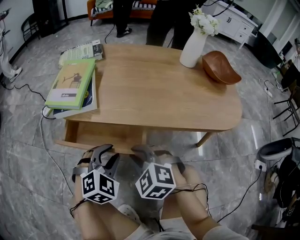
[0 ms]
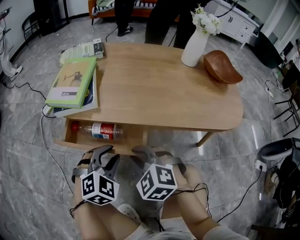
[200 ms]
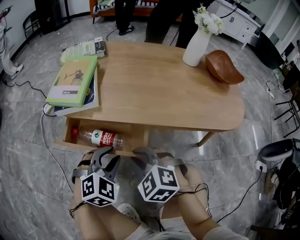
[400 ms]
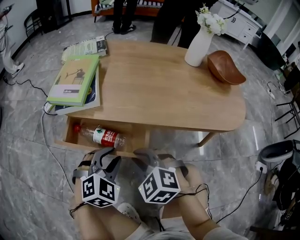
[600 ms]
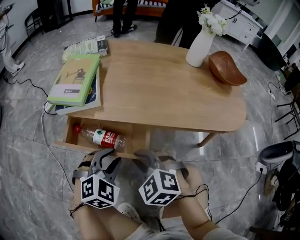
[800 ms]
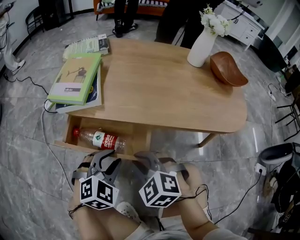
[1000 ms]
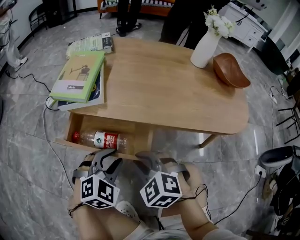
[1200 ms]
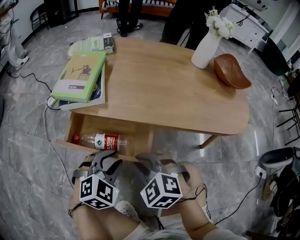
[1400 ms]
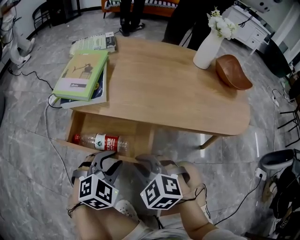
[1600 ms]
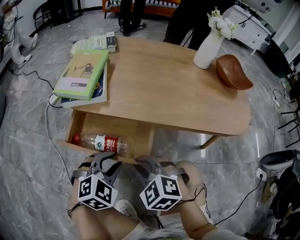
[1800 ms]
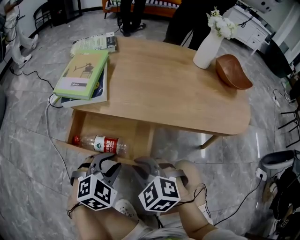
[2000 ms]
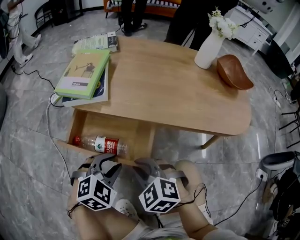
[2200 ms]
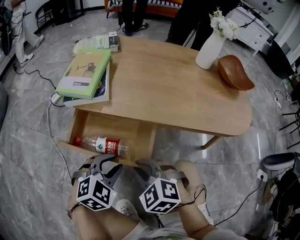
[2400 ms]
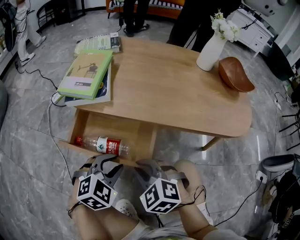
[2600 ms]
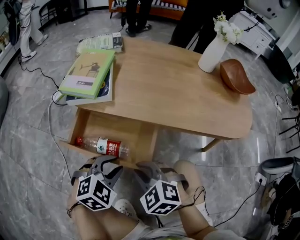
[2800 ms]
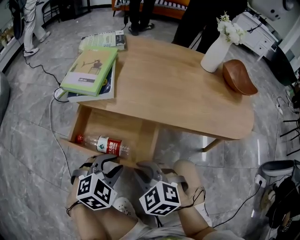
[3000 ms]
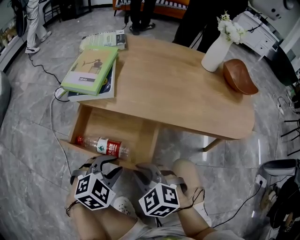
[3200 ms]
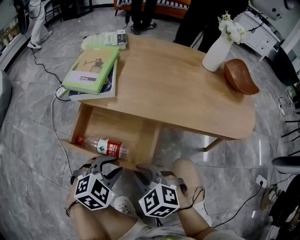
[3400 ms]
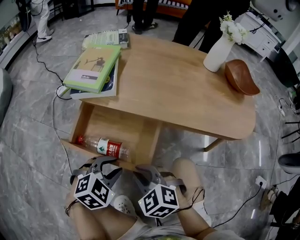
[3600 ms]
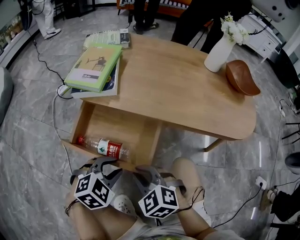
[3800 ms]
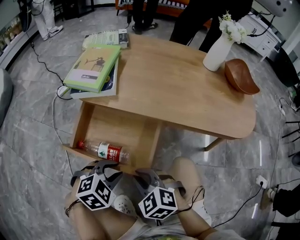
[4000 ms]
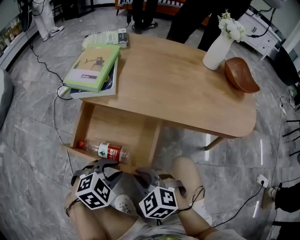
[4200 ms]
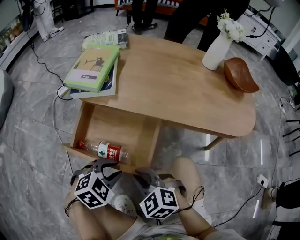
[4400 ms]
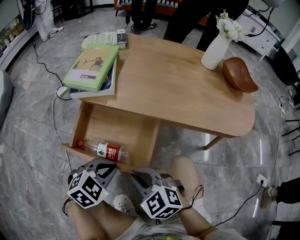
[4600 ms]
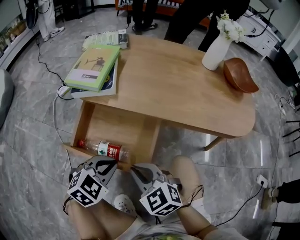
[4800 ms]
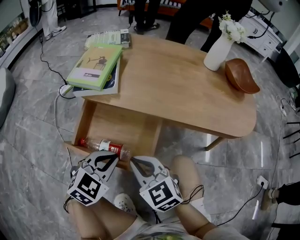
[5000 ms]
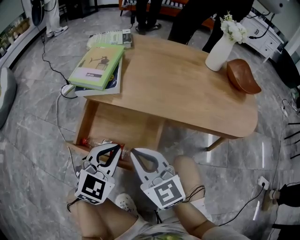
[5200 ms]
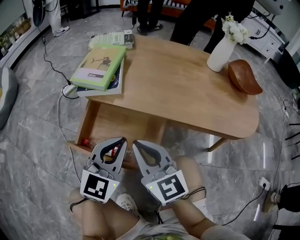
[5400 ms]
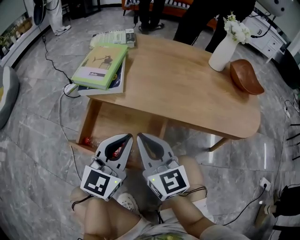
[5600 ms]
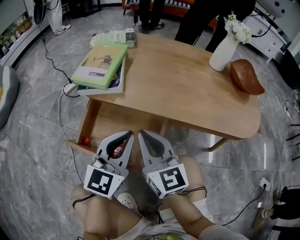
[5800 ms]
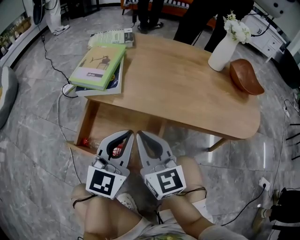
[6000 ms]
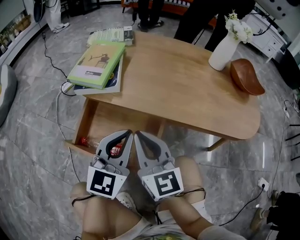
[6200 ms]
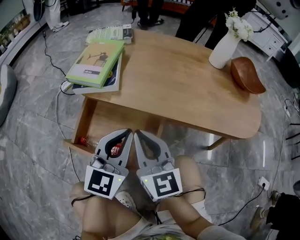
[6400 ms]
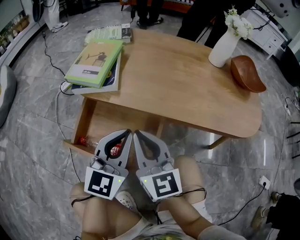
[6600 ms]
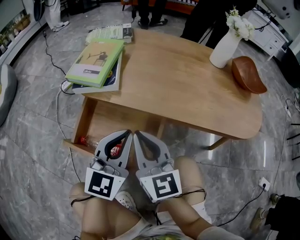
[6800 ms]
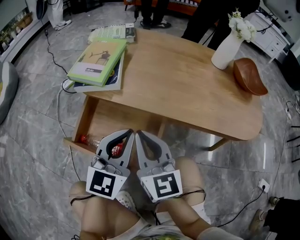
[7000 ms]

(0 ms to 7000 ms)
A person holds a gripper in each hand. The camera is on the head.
0 ms - 1400 ms: The grippers stay close to where they were, moving slightly.
1400 ms - 2800 ms: The grippers move only a little.
2800 ms - 4200 ms: The grippers stay close to where they were, moving slightly.
4200 ms - 5600 ms: Both grippers move upward and forward, about 15 cm. The right gripper angles its fingers upward, by approximately 50 degrees; the left gripper tips its fingers upward by about 50 degrees, and closes up.
5600 ms - 7000 ms: There are only small adjustments of the grippers.

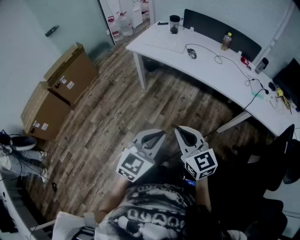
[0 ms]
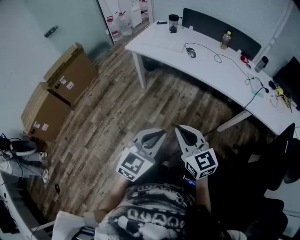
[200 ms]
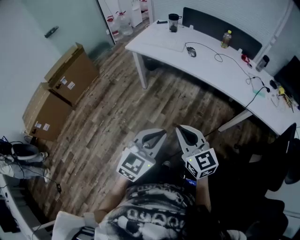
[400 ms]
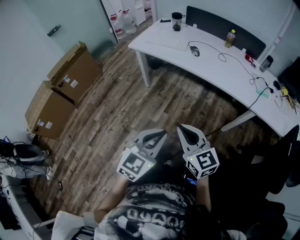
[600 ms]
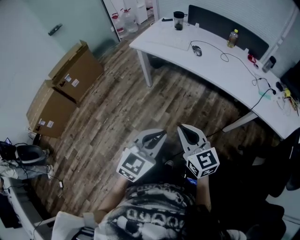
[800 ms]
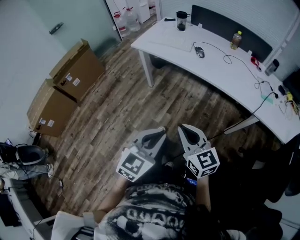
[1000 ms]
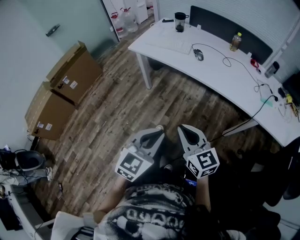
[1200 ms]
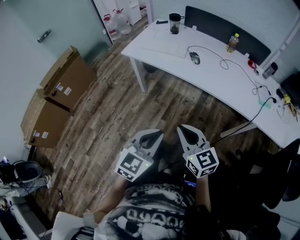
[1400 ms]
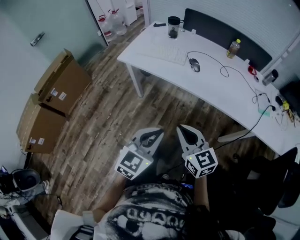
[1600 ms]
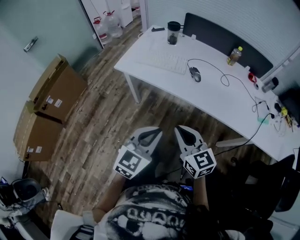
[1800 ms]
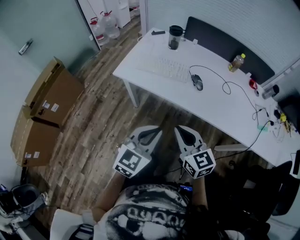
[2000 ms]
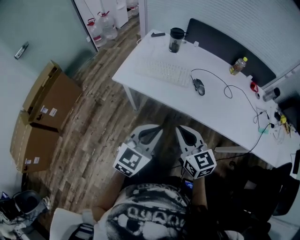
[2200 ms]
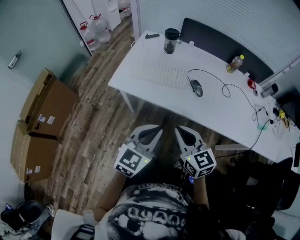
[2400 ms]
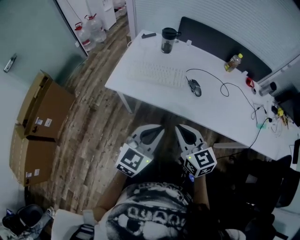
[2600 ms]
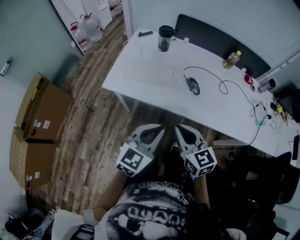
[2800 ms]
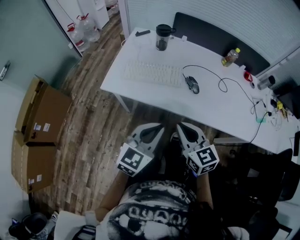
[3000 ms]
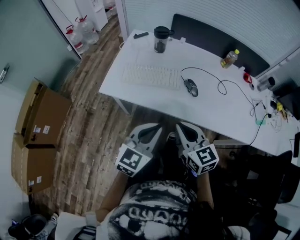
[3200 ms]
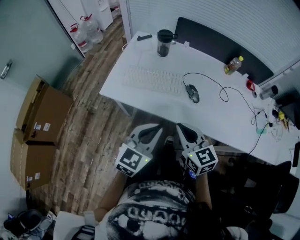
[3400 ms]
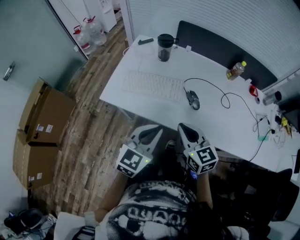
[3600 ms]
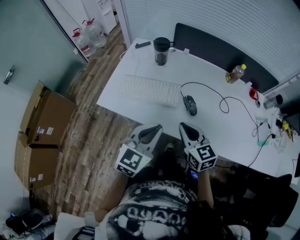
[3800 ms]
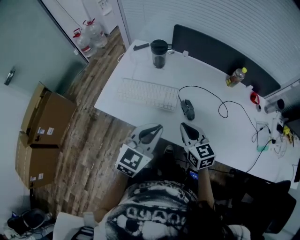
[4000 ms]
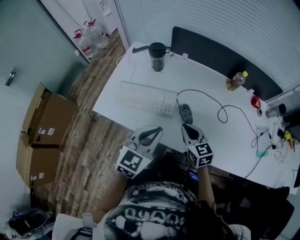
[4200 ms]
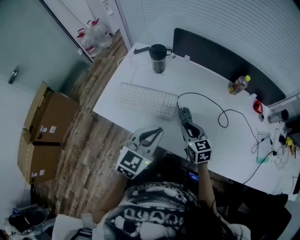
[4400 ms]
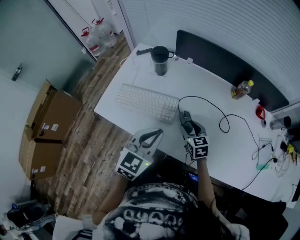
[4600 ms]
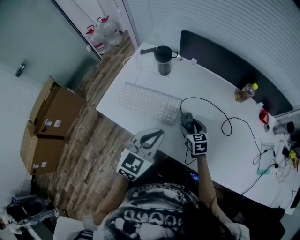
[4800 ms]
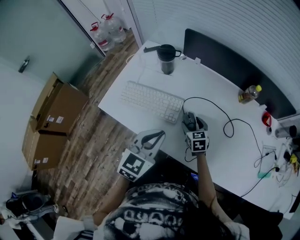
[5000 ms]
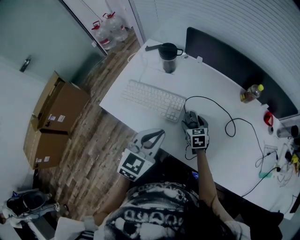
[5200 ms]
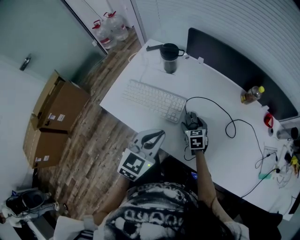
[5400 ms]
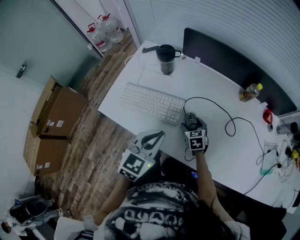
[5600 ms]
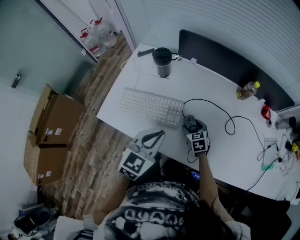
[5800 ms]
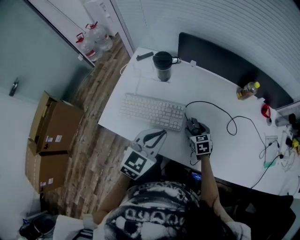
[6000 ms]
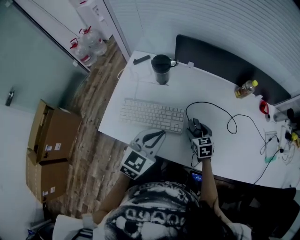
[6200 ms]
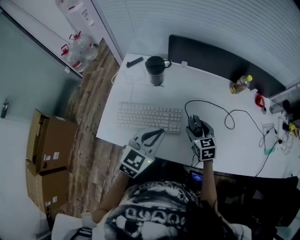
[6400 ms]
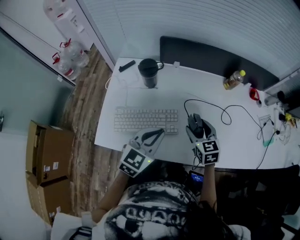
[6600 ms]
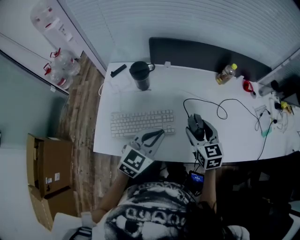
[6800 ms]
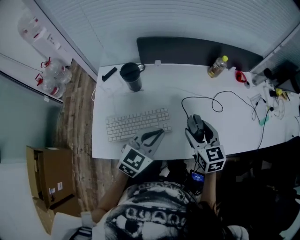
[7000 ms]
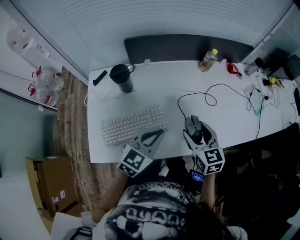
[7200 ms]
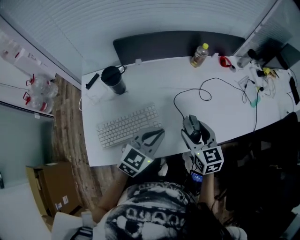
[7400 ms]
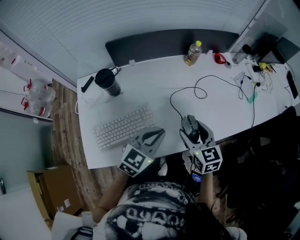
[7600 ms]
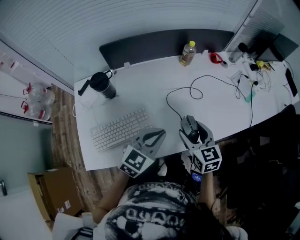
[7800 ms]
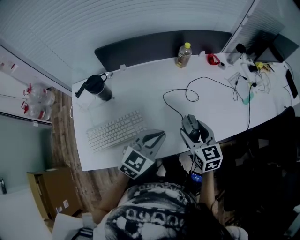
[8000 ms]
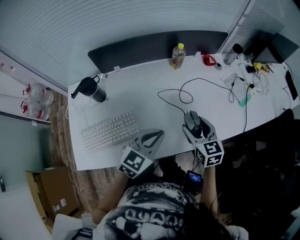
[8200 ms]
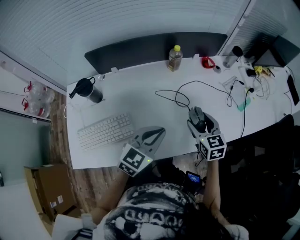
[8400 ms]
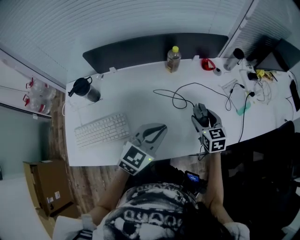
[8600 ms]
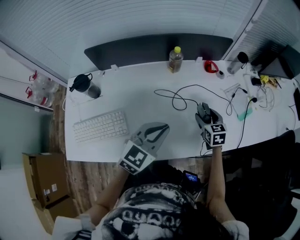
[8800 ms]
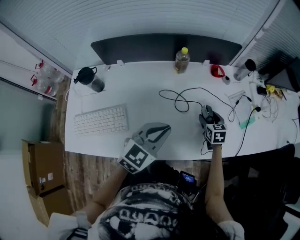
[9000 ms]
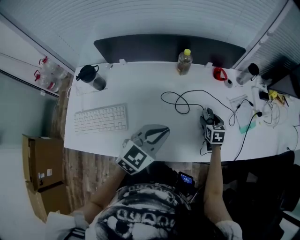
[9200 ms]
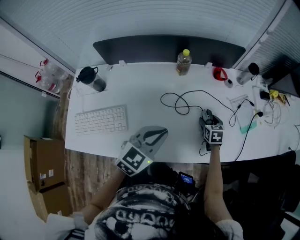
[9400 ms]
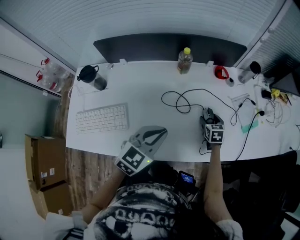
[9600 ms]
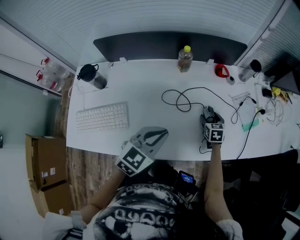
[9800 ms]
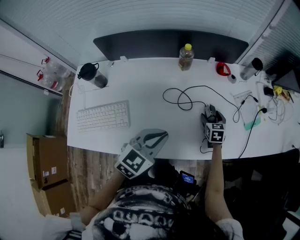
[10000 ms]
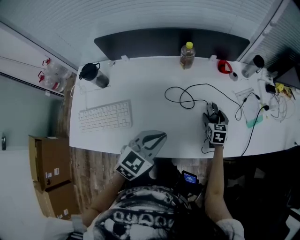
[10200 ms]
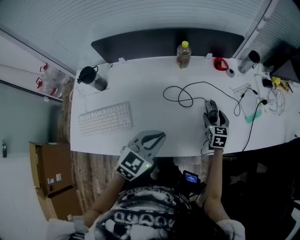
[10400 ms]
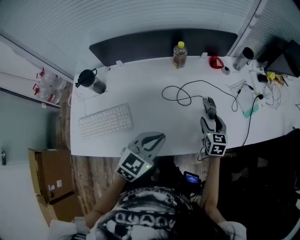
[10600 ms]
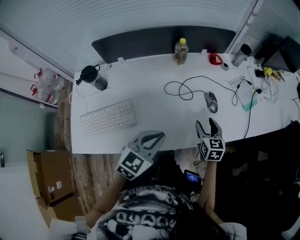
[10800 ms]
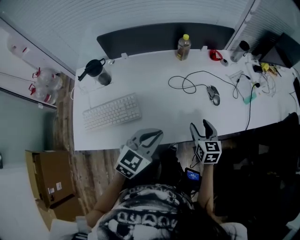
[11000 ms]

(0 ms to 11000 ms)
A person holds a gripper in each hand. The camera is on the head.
0 ms - 1600 ms: Both grippers travel together forward, roughly 20 cm.
1600 ms - 3200 ms: Both grippers move forward, approximately 25 cm.
3200 ms - 4800 ms: The left gripper heads forward and to the right, covering about 20 cm, while the right gripper moves forward, downward and to the right, about 35 cm, and opens up.
4800 ms - 6200 ms: The left gripper moves forward and to the left, about 10 cm.
6200 ms - 7800 ms: The right gripper shifts approximately 15 cm upward, and rotates some 30 degrees, while the left gripper changes place by approximately 10 cm, and changes its angle by approximately 40 degrees.
7800 ms - 9400 ms: The left gripper moves to the right and forward, about 20 cm. The right gripper travels to the right, forward and downward by roughly 40 cm, and swivels about 20 degrees.
9400 ms - 11000 ms: The left gripper goes approximately 15 cm backward and to the left; the right gripper heads backward and upward, covering approximately 25 cm.

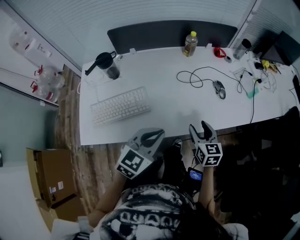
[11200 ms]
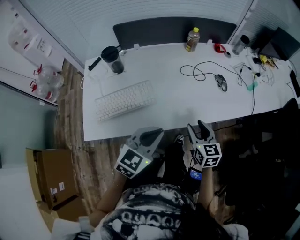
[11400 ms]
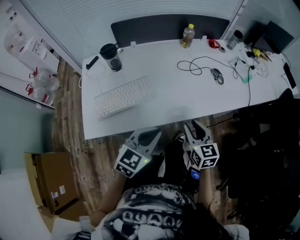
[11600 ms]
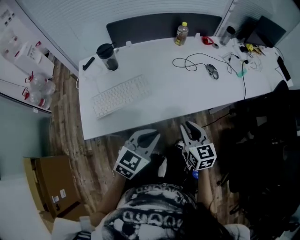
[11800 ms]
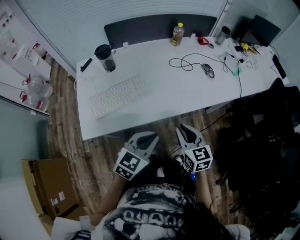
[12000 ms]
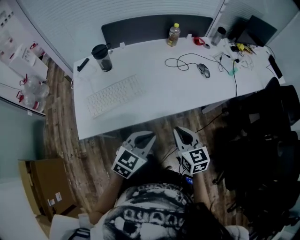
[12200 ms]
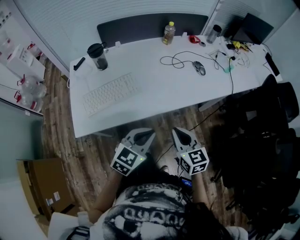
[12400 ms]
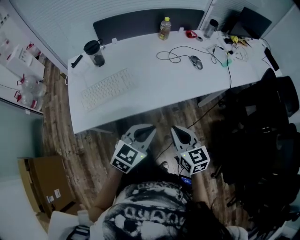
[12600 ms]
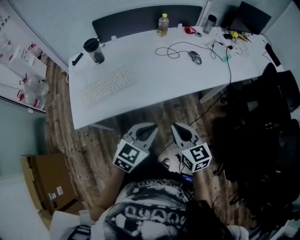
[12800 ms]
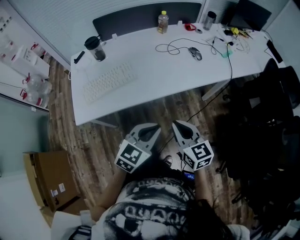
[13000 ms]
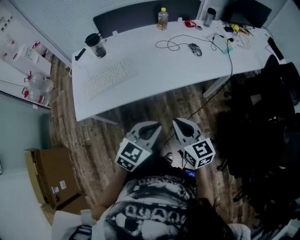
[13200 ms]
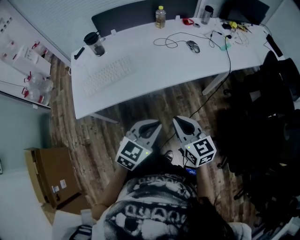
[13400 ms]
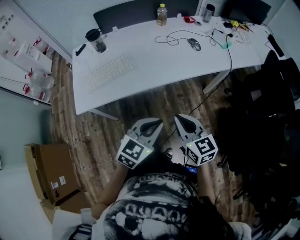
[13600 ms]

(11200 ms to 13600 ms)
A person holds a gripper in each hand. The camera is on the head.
11200 ms - 12400 ms: The two grippers go roughly 20 cm backward. The right gripper closes its fingers.
12400 ms - 13600 ms: The left gripper shifts roughly 15 cm to the right and backward; the right gripper shifts some 10 cm backward and to the right.

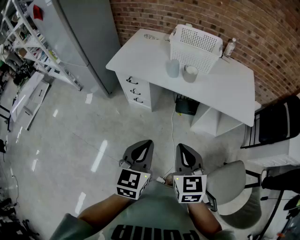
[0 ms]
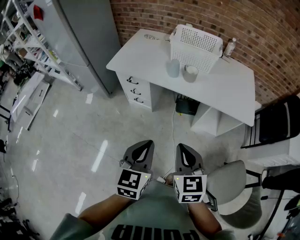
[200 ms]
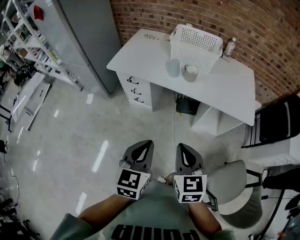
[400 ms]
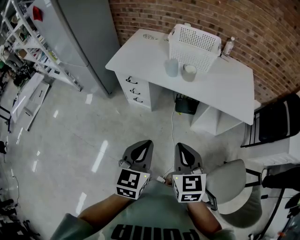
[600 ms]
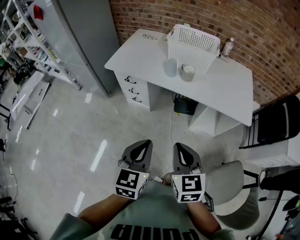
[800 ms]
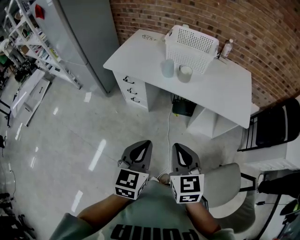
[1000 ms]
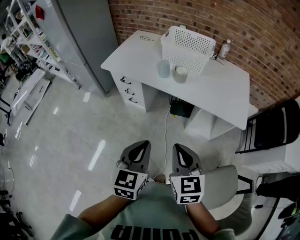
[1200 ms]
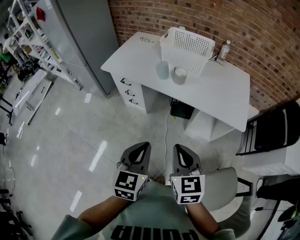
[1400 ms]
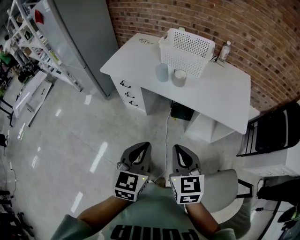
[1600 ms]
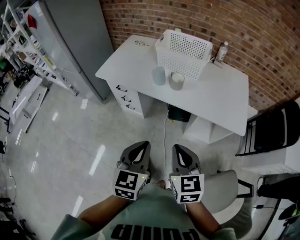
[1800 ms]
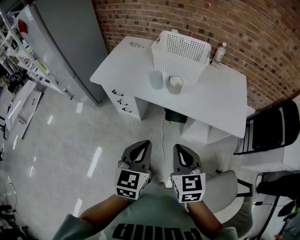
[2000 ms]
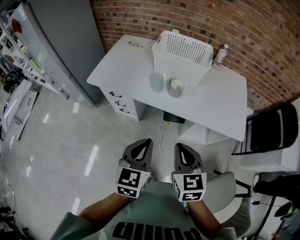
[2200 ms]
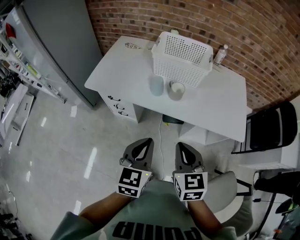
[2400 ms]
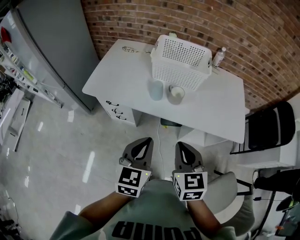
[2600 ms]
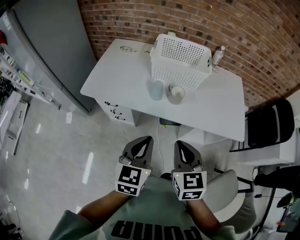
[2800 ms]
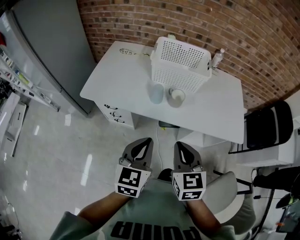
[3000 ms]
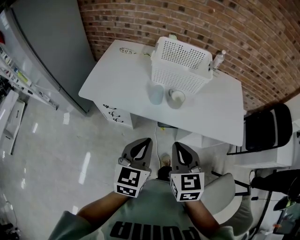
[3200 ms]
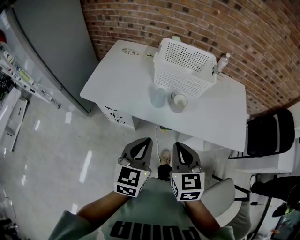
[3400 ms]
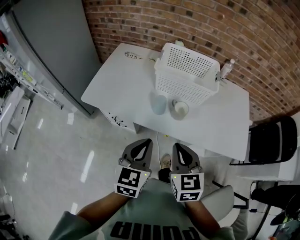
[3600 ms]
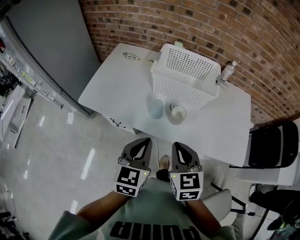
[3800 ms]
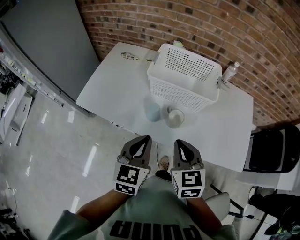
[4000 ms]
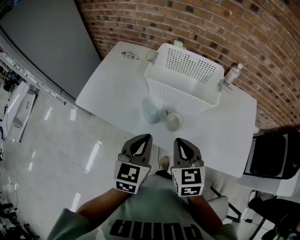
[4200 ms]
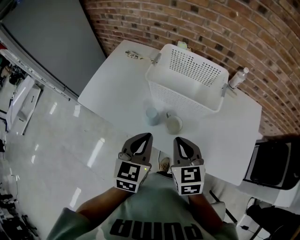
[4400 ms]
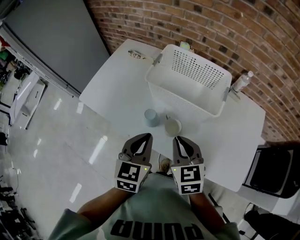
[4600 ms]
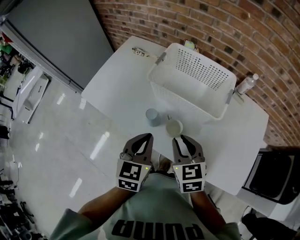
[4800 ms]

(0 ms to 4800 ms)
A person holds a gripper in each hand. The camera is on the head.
0 ms - 1600 ms: The grippers both shift to the right by some 10 cm.
1600 ms - 3200 ms: The grippers both shift forward and to the left by roughly 25 cm.
3200 ms - 4800 ms: Both grippers move forward and to the right, some 25 cm. The right gripper turns by some 20 degrees. The left gripper rotates roughly 20 degrees.
